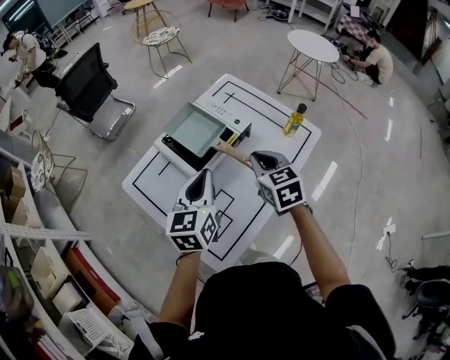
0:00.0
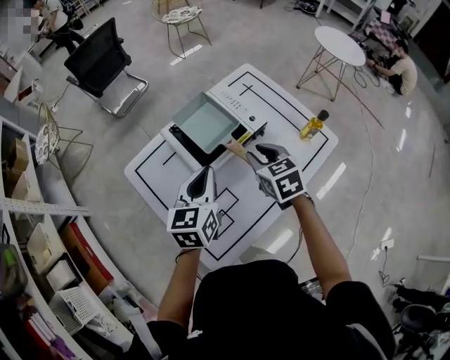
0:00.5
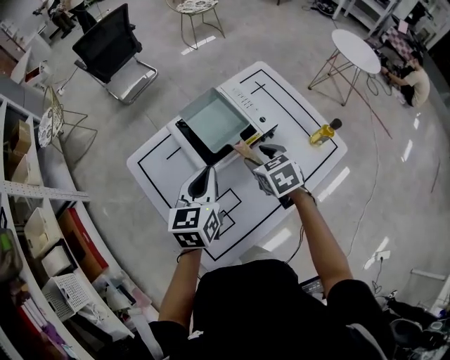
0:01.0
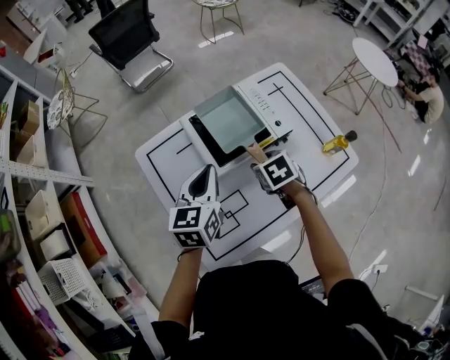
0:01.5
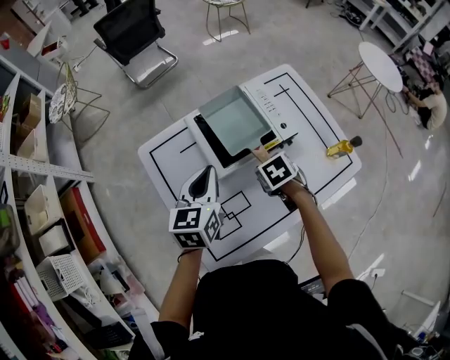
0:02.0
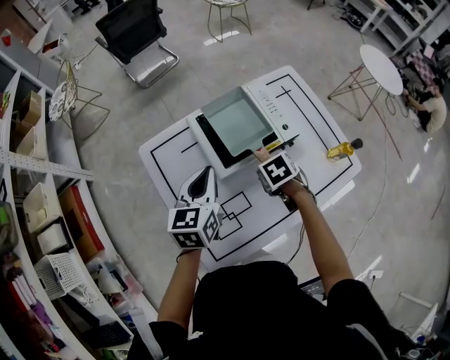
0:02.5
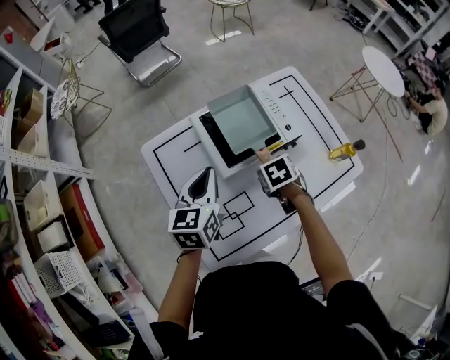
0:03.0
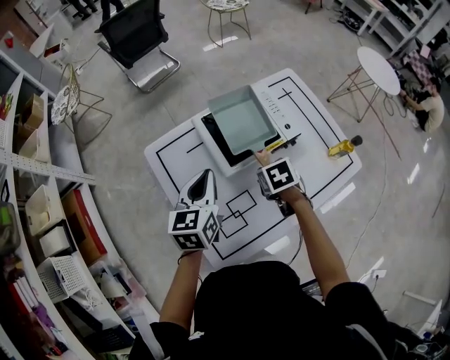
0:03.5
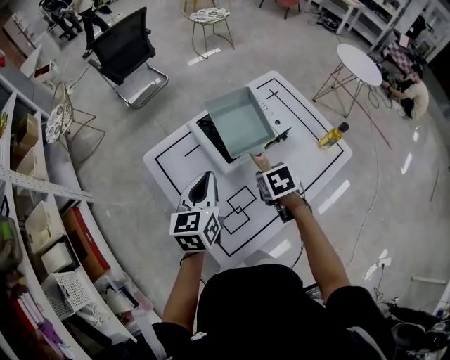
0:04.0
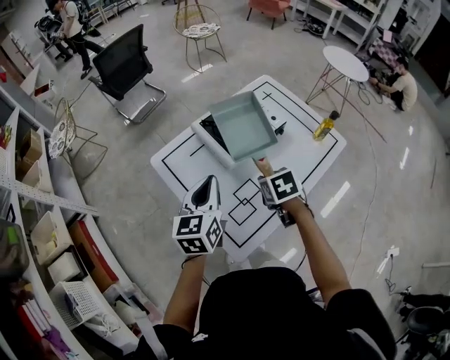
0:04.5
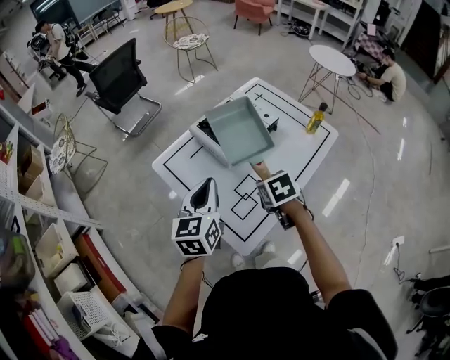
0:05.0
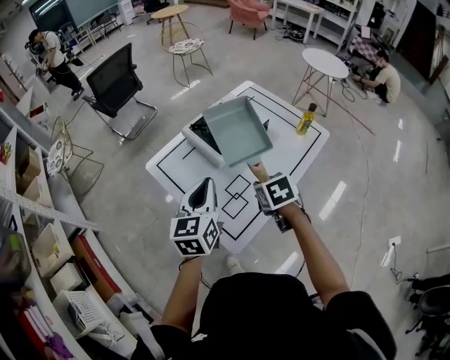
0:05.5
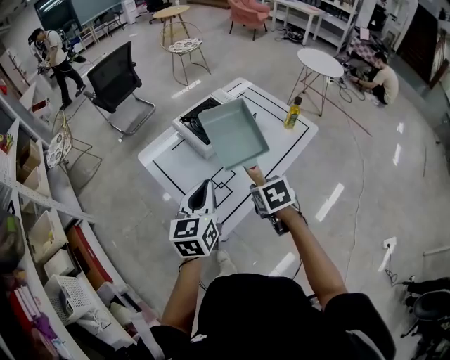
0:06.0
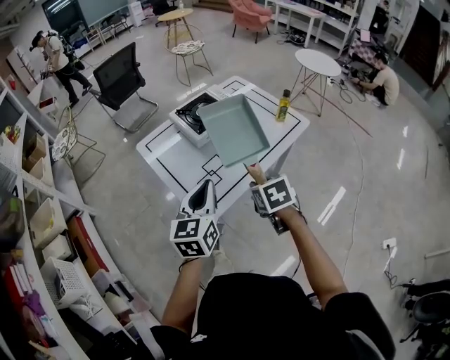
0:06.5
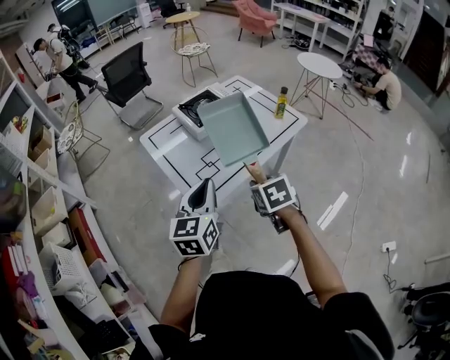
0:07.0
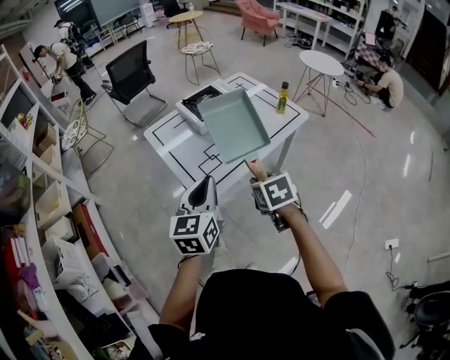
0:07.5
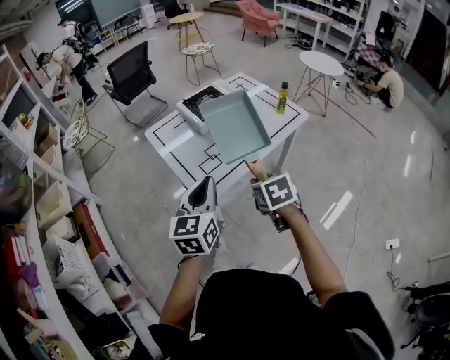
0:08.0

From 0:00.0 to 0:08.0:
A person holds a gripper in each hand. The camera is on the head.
From 0:00.0 to 0:02.0: The left gripper changes place by roughly 10 cm, and rotates some 20 degrees. The right gripper shifts some 15 cm downward, points its fingers some 40 degrees further downward, and opens up.
From 0:02.0 to 0:04.0: The right gripper shifts approximately 10 cm upward and backward, while the left gripper moves approximately 5 cm.
From 0:04.0 to 0:06.0: Both grippers travel together backward, roughly 20 cm.
From 0:06.0 to 0:08.0: The grippers both shift backward by approximately 20 cm.

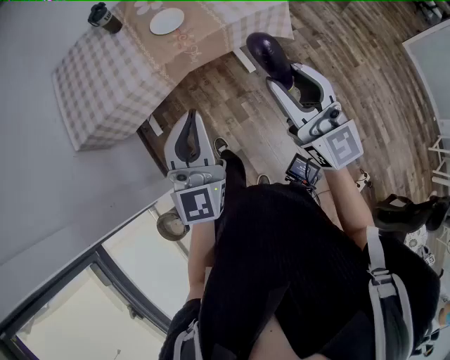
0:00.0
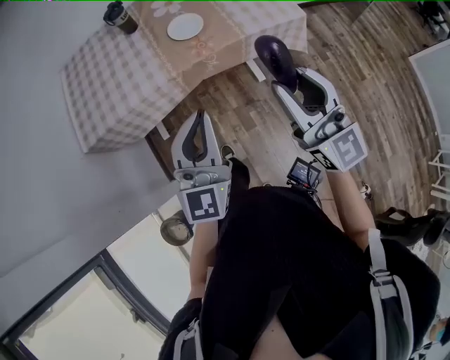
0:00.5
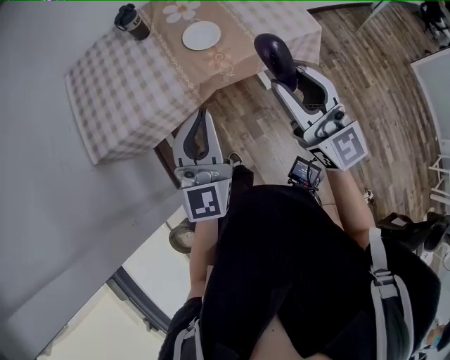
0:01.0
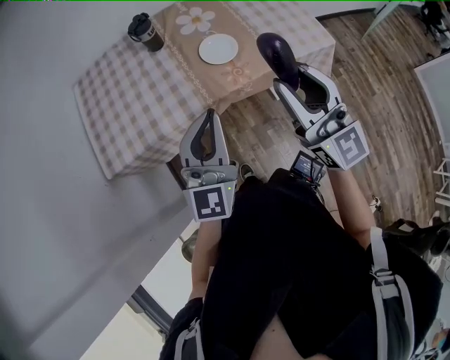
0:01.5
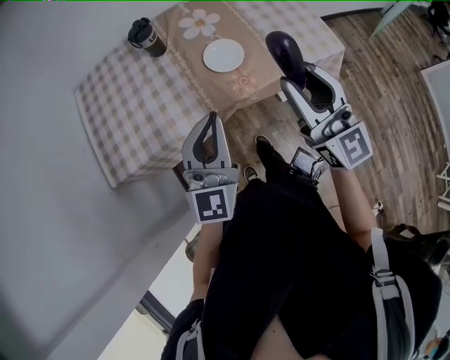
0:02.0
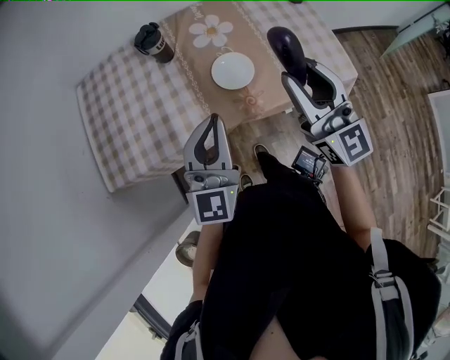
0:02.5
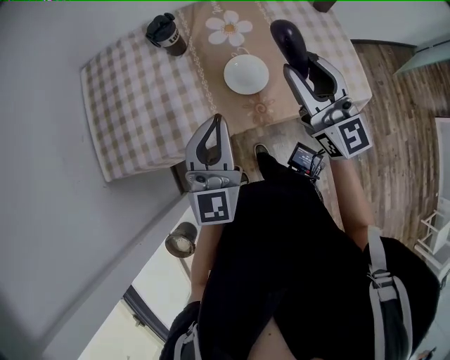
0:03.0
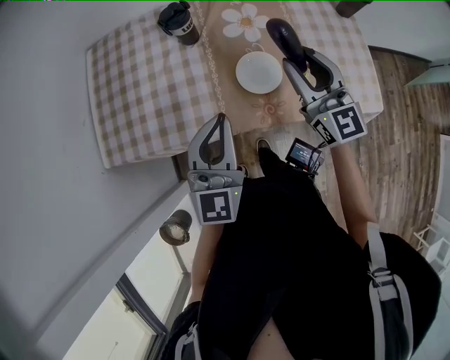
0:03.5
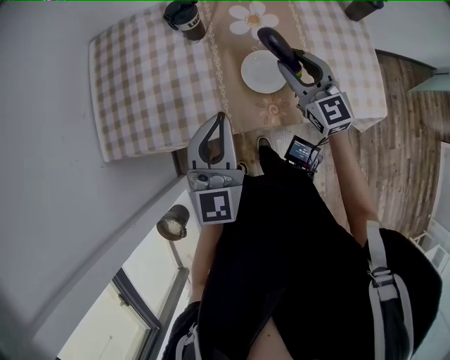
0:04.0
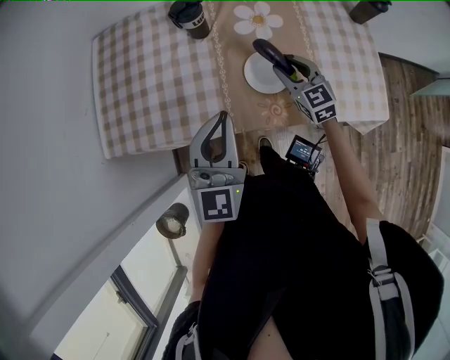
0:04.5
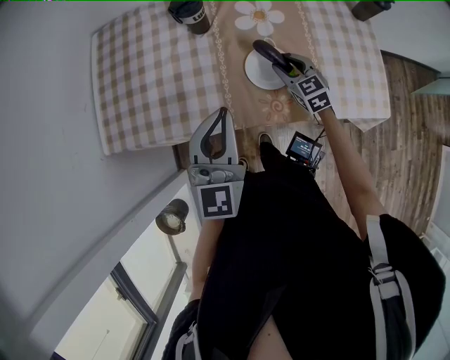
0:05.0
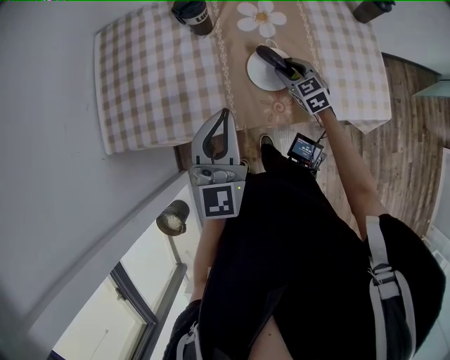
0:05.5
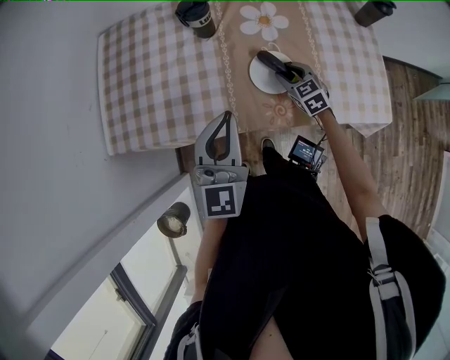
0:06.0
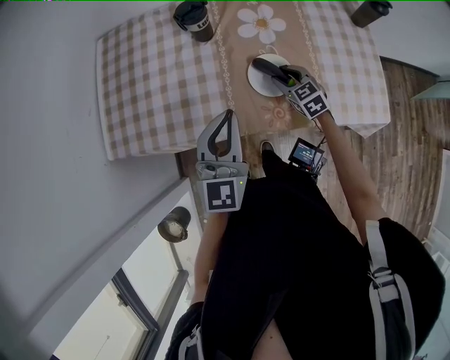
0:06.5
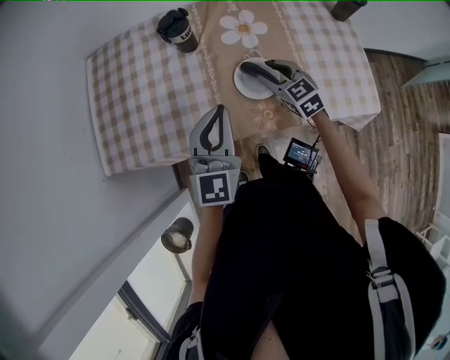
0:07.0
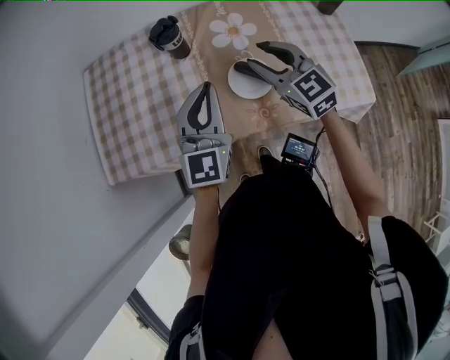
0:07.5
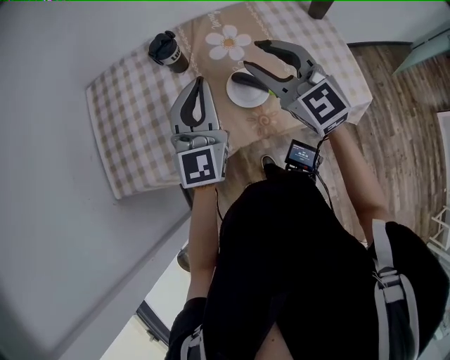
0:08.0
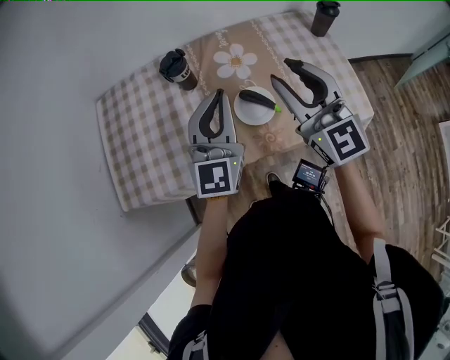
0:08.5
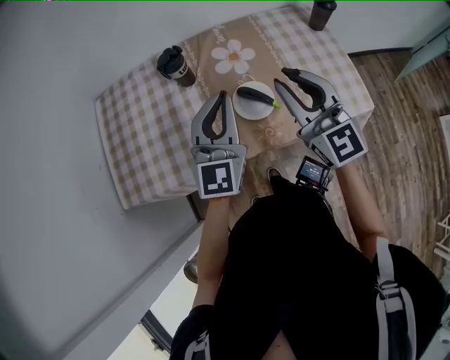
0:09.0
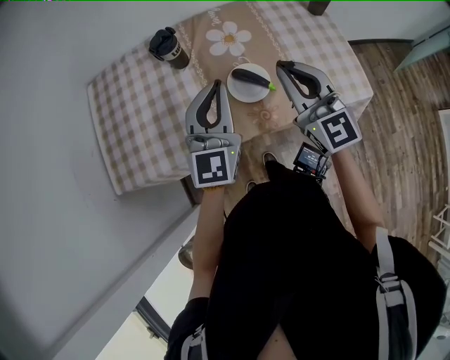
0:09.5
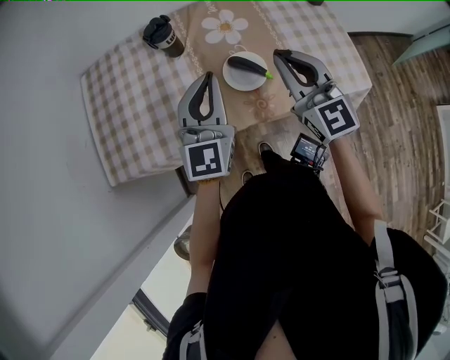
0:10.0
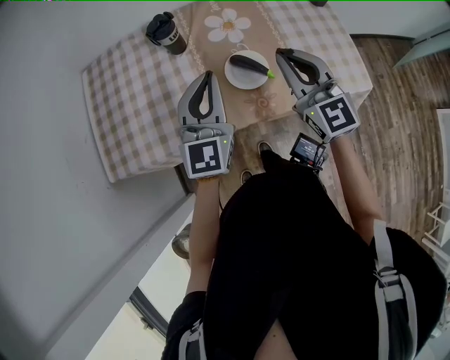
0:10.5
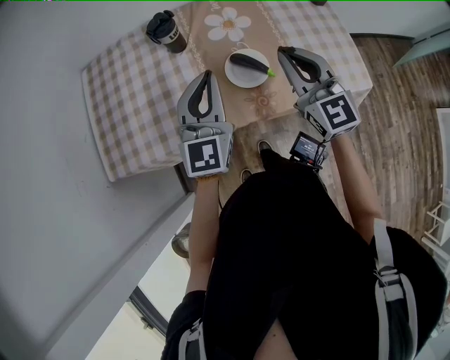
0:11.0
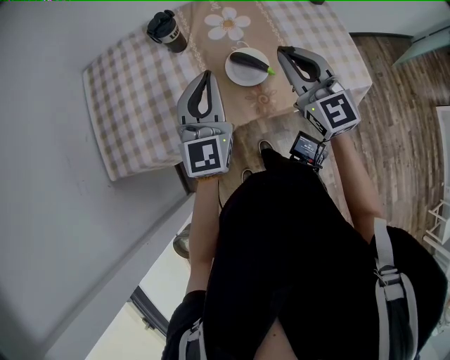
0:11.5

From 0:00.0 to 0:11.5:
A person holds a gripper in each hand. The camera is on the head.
From 0:00.0 to 0:02.0: The two grippers go approximately 25 cm forward.
From 0:02.0 to 0:04.0: The left gripper heads forward, covering about 15 cm, and changes its angle by some 20 degrees, while the right gripper is displaced forward and downward by roughly 30 cm, and swivels about 30 degrees.
From 0:04.0 to 0:06.0: The right gripper is displaced downward by some 20 cm, and rotates roughly 30 degrees.
From 0:06.0 to 0:07.5: The left gripper travels forward by roughly 5 cm; the right gripper moves upward, roughly 25 cm, and swivels some 20 degrees.
From 0:07.5 to 0:09.5: The right gripper travels upward and backward by approximately 10 cm, turns by roughly 20 degrees, and closes up.
From 0:09.5 to 0:11.5: There are only small adjustments of the grippers.

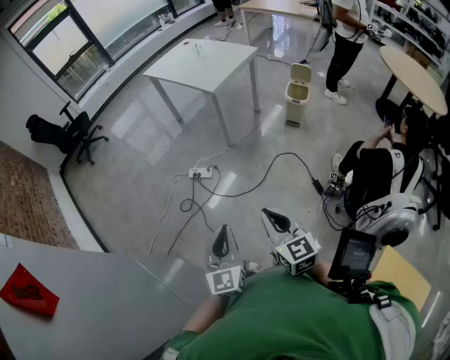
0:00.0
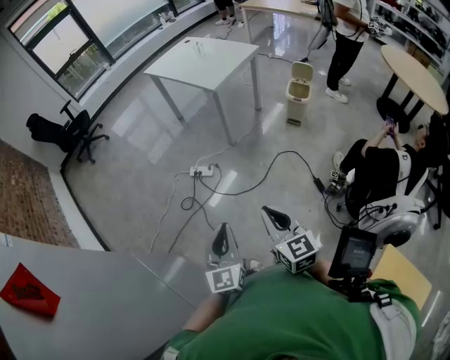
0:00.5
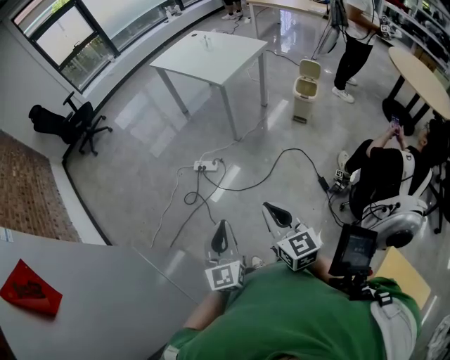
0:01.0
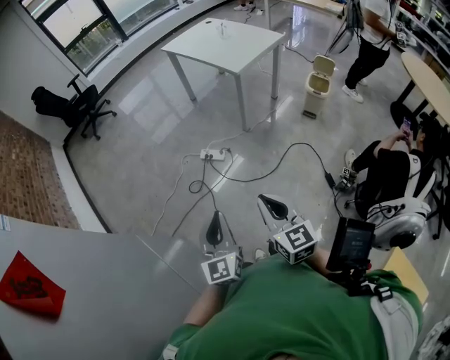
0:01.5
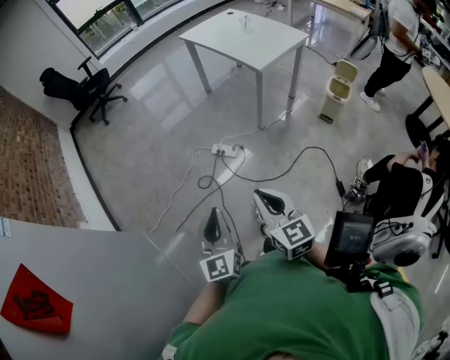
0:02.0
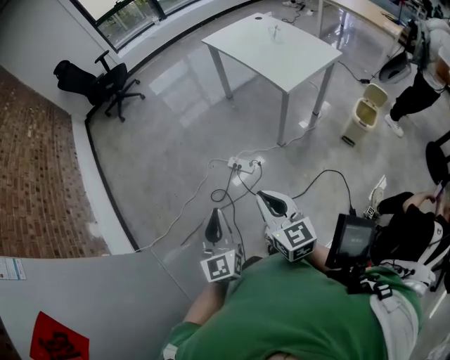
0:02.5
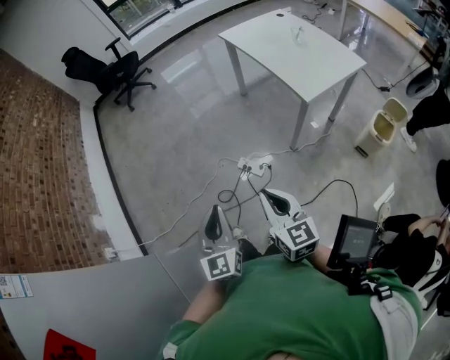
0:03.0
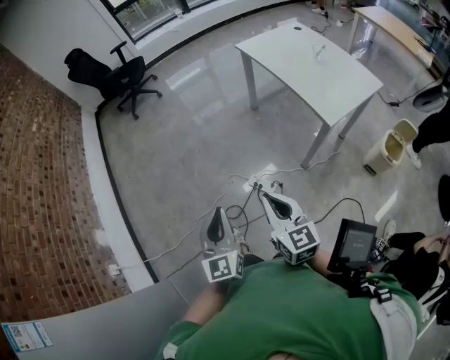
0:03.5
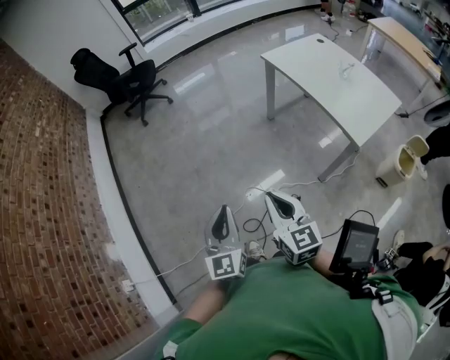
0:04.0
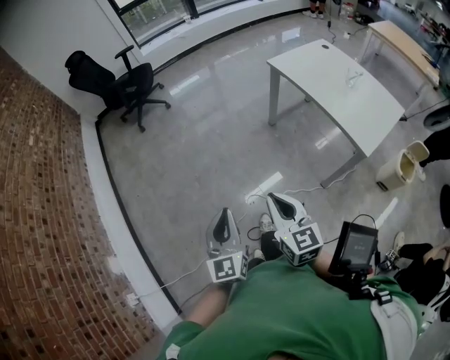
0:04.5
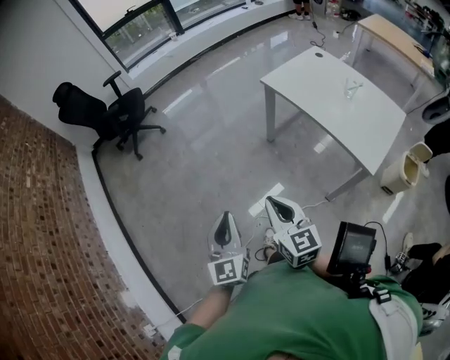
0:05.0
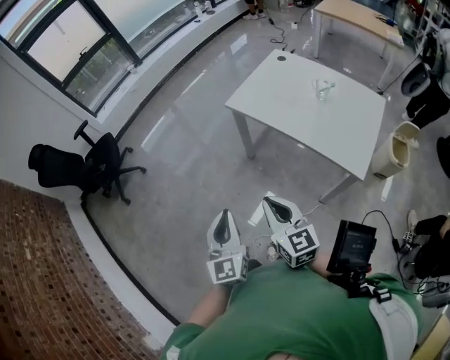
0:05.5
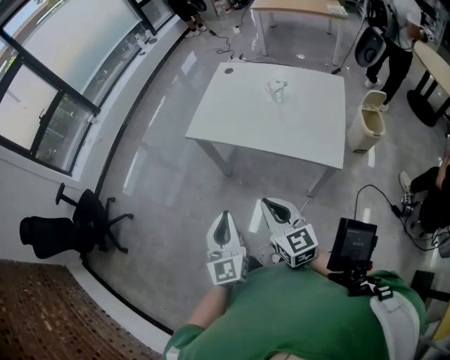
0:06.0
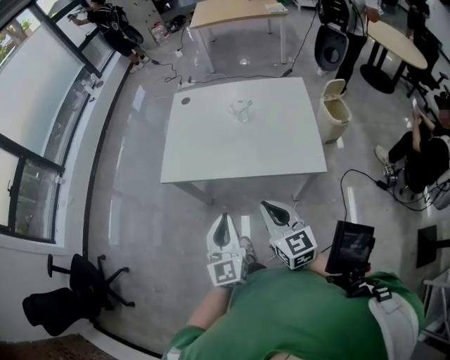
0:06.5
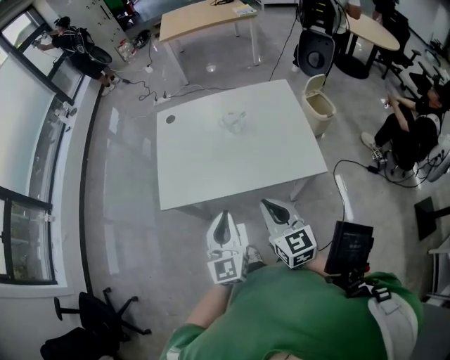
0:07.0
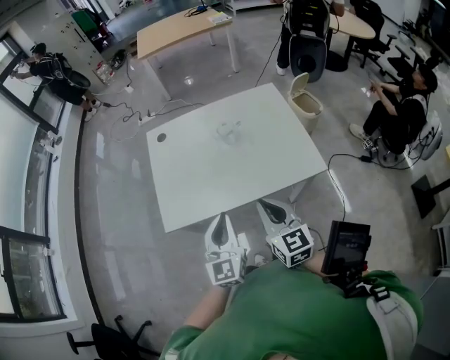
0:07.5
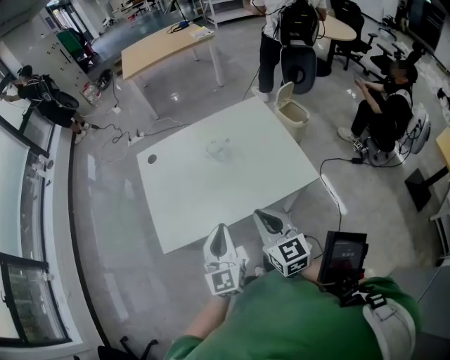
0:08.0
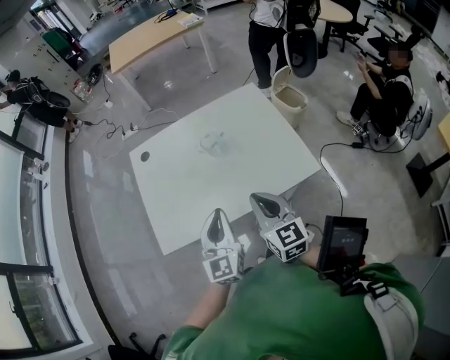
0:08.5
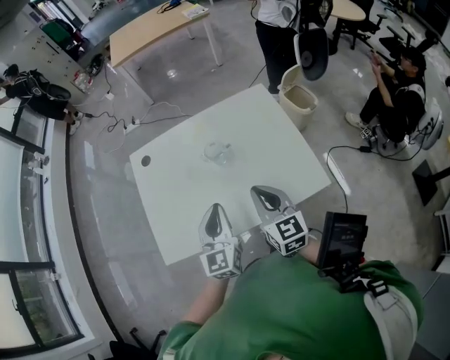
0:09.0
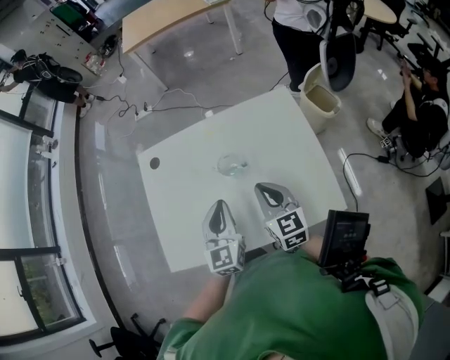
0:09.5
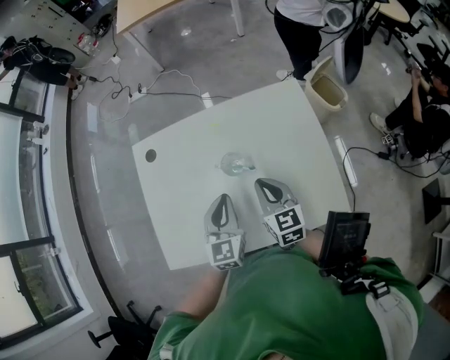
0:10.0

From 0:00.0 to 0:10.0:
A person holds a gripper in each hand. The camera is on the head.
From 0:00.0 to 0:02.0: Both grippers move to the left and forward, about 20 cm.
From 0:02.0 to 0:04.0: Both grippers are carried forward, roughly 50 cm.
From 0:04.0 to 0:06.0: The right gripper ends up roughly 35 cm from where it was, and swivels some 30 degrees; the left gripper moves about 40 cm, and turns by some 40 degrees.
From 0:06.0 to 0:08.0: The right gripper shifts by some 20 cm, and changes its angle by approximately 40 degrees, while the left gripper changes place by approximately 30 cm, and changes its angle by approximately 40 degrees.
From 0:08.0 to 0:10.0: The grippers both shift forward by about 25 cm.
